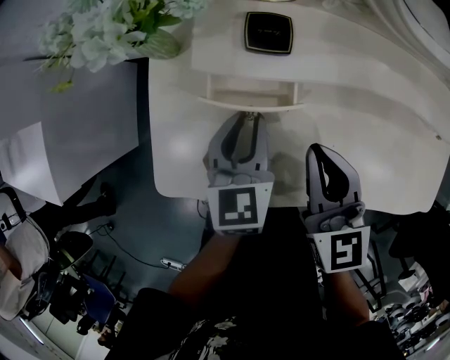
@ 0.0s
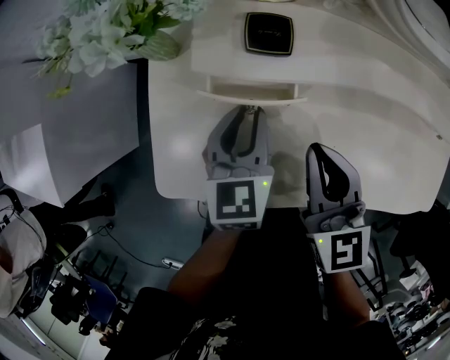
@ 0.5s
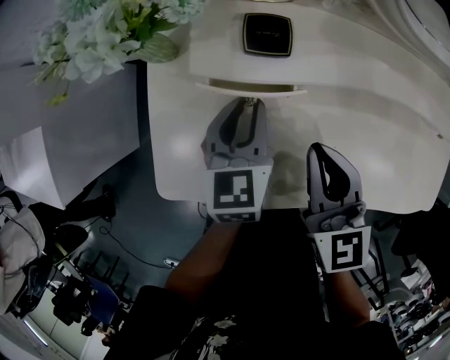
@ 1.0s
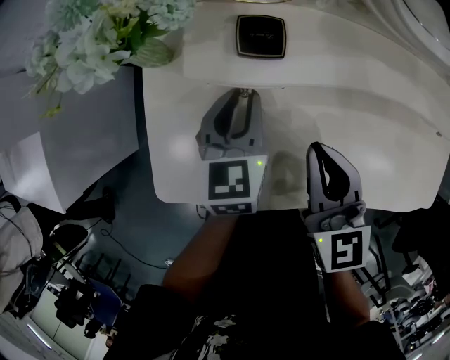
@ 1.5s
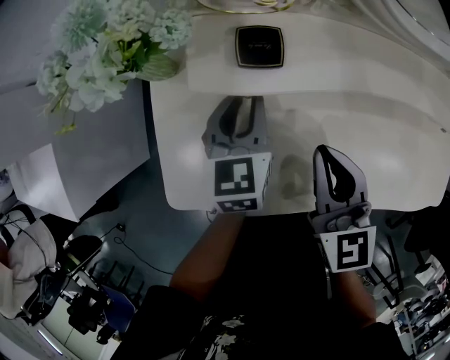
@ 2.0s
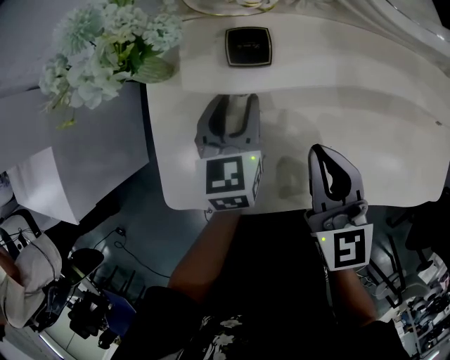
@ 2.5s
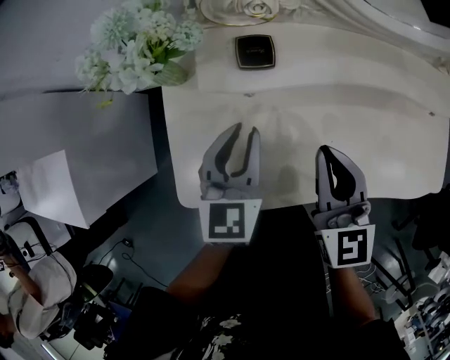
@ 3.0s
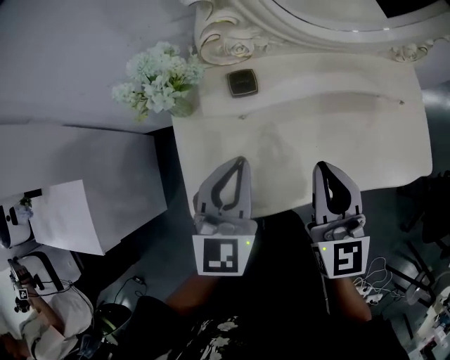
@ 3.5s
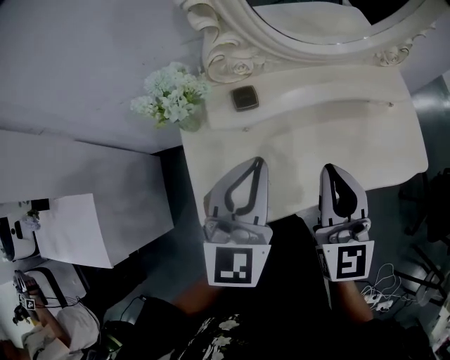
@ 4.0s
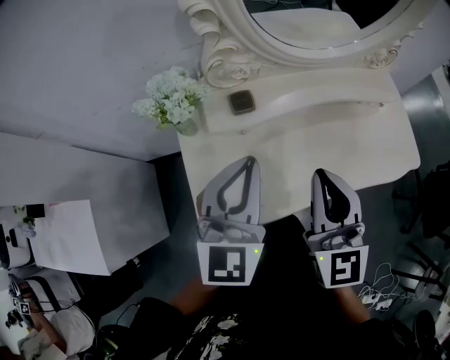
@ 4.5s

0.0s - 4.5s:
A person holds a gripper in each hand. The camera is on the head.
0.0s - 2.0s: The left gripper travels forward by roughly 5 cm.
2.0s - 4.5s: Both grippers move upward and backward, some 25 cm. The right gripper changes its angle by some 30 degrees; the left gripper changes its angle by about 40 degrees.

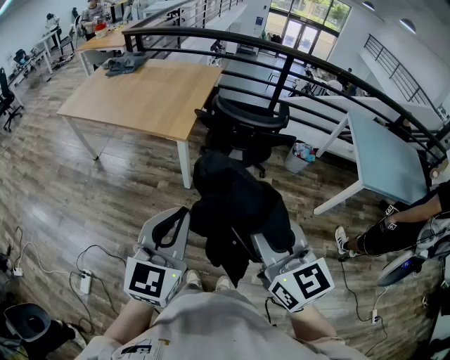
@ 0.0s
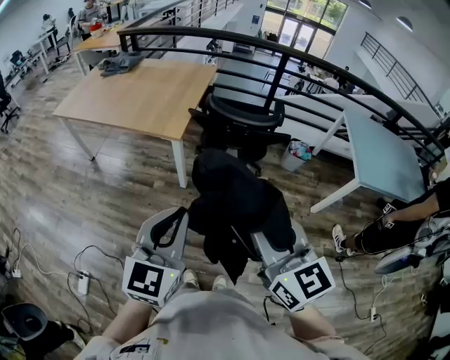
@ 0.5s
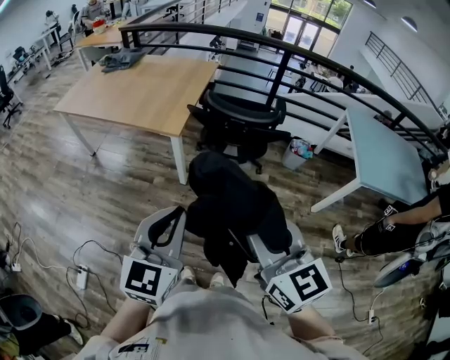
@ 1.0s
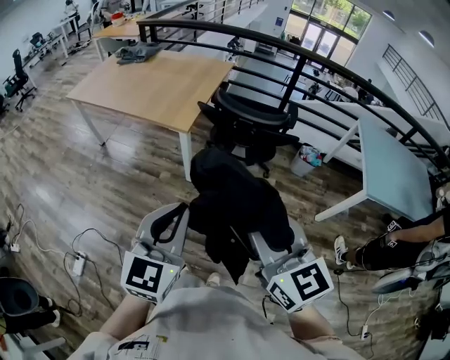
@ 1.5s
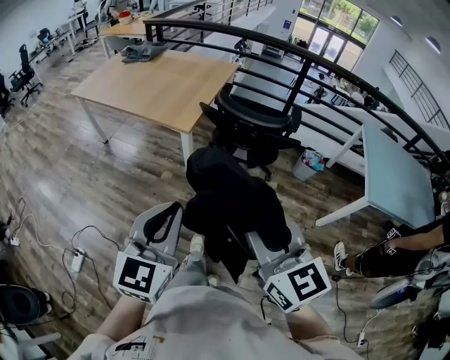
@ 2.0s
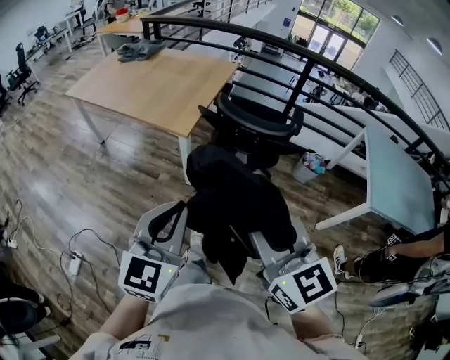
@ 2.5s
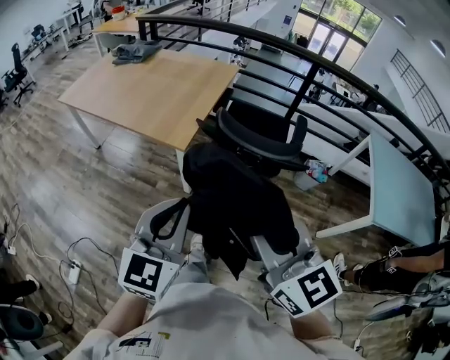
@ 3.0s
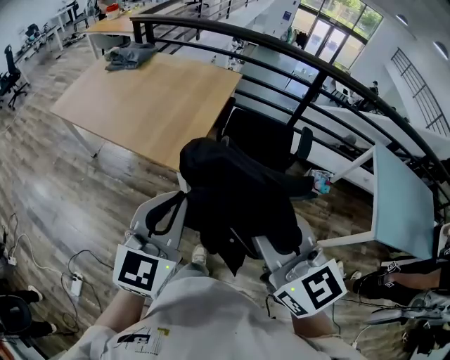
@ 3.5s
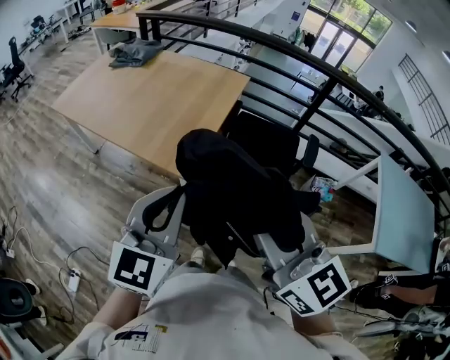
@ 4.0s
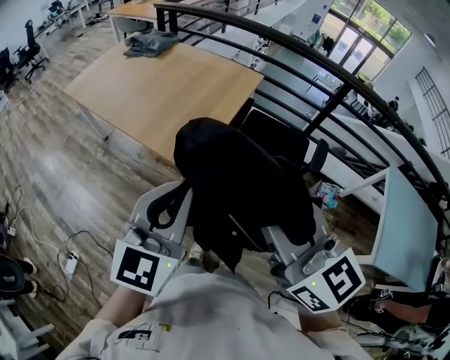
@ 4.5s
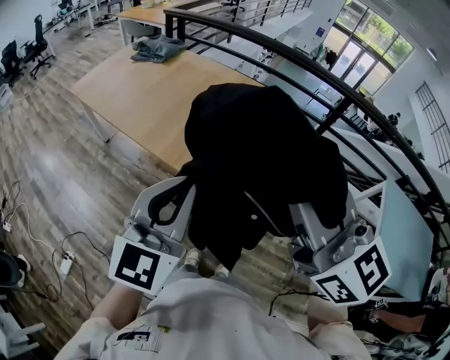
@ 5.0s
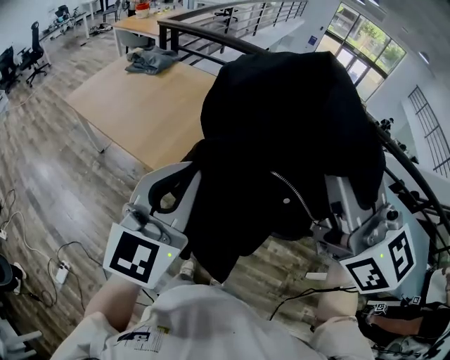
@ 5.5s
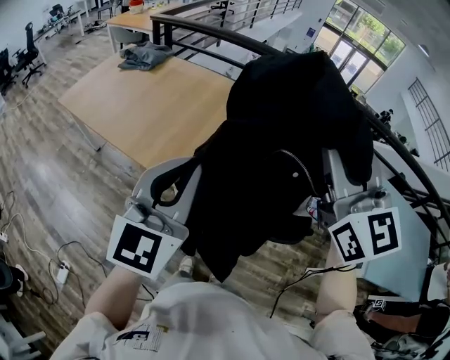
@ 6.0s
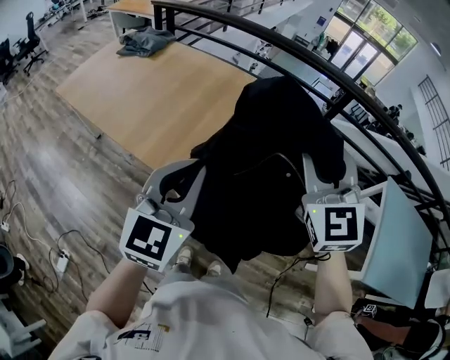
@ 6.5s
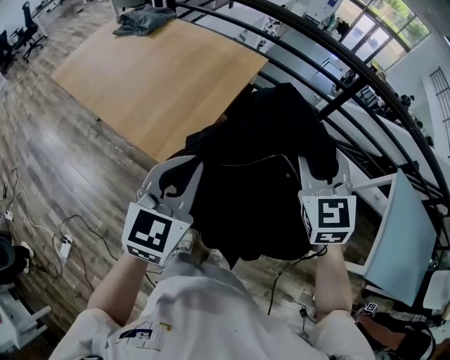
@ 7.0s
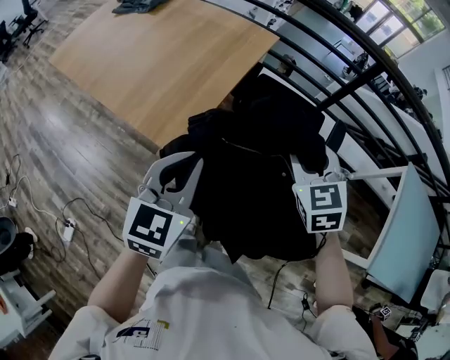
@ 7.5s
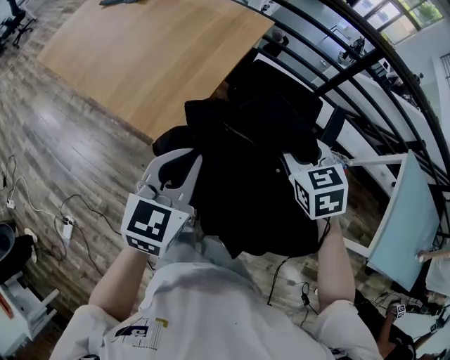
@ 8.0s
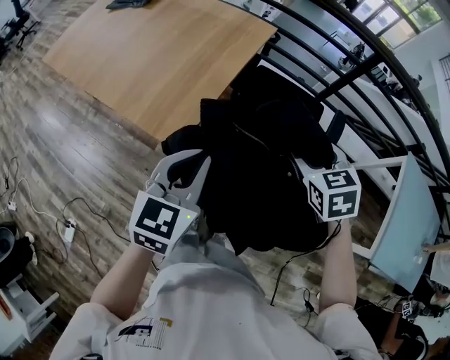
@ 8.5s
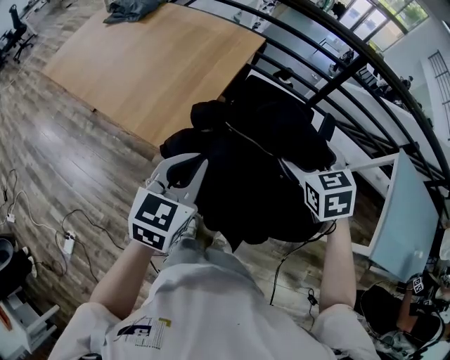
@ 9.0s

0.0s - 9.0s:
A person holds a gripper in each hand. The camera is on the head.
0.0s - 2.0s: Both grippers travel together to the right, about 5 cm.
2.0s - 4.5s: The grippers both shift forward by approximately 40 cm.
4.5s - 7.0s: The right gripper is displaced forward, to the right and downward by some 35 cm, and rotates some 40 degrees. Meanwhile the left gripper travels forward, to the right and downward by some 20 cm.
7.0s - 9.0s: The right gripper heads downward, covering about 10 cm, rotates approximately 30 degrees, and opens up; the left gripper shifts about 5 cm downward.

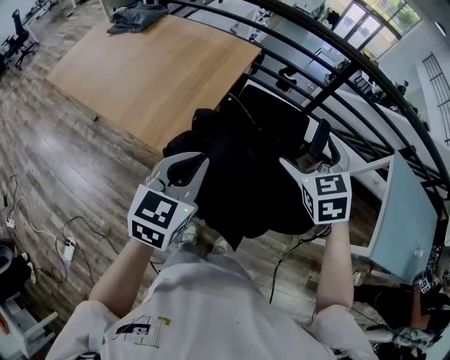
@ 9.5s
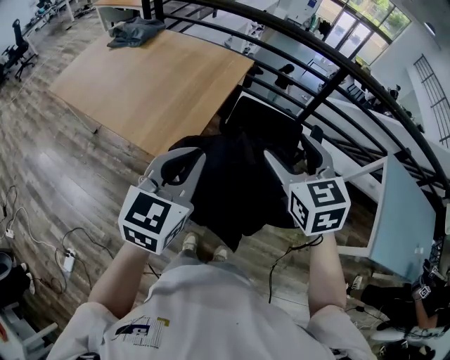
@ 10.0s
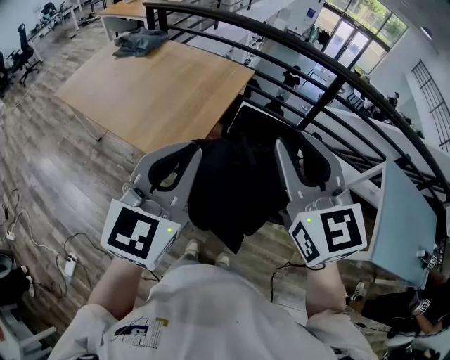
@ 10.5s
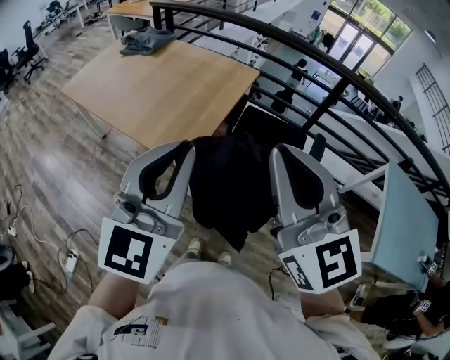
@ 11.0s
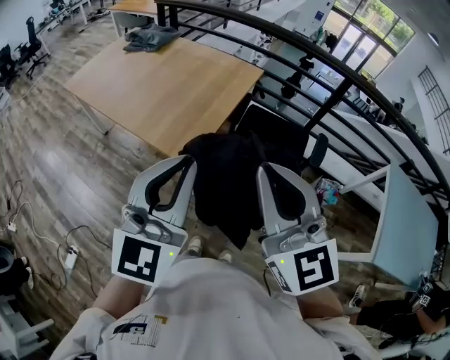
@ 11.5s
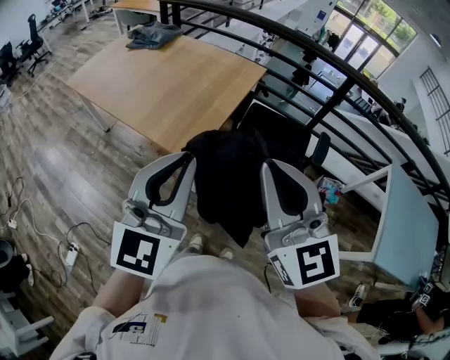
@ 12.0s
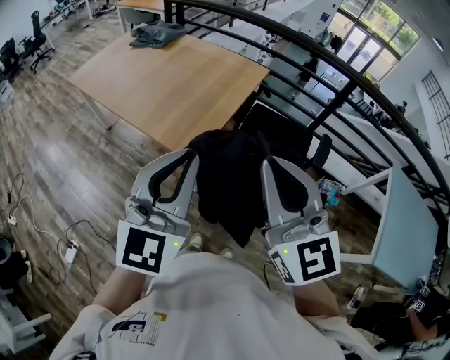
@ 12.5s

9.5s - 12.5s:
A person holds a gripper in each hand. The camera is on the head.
9.5s - 11.0s: The right gripper heads upward, backward and to the left, covering about 30 cm, tilts its fingers some 40 degrees upward, and closes. The left gripper heads upward and backward, covering some 20 cm, and changes its angle by some 30 degrees.
11.0s - 12.5s: The right gripper ends up some 5 cm from where it was.

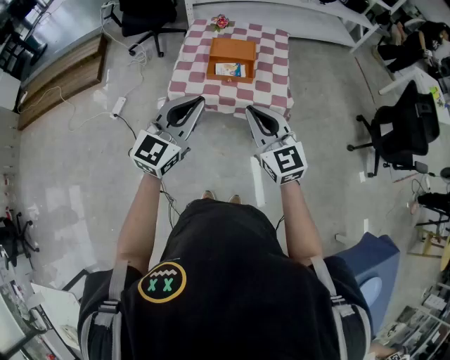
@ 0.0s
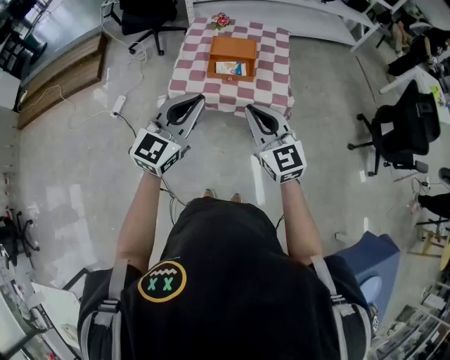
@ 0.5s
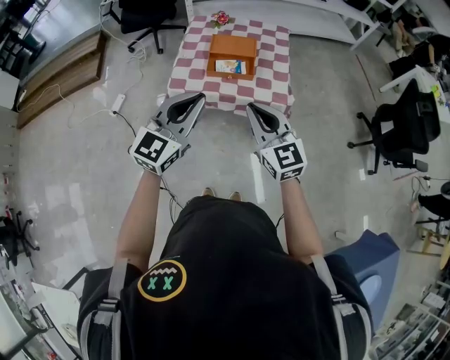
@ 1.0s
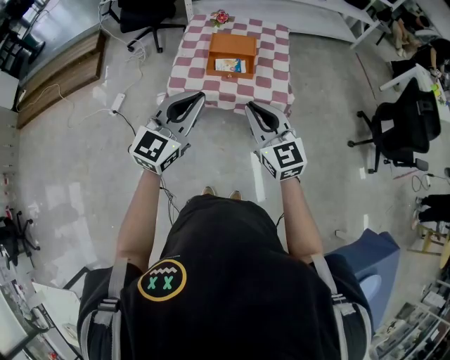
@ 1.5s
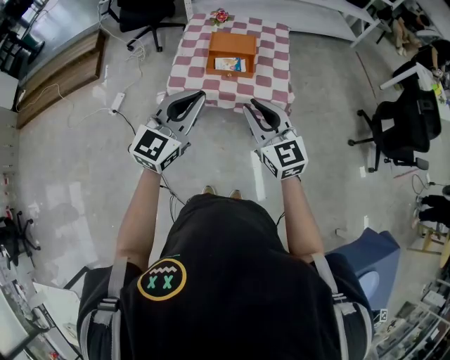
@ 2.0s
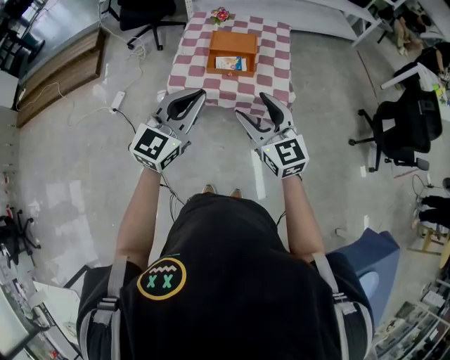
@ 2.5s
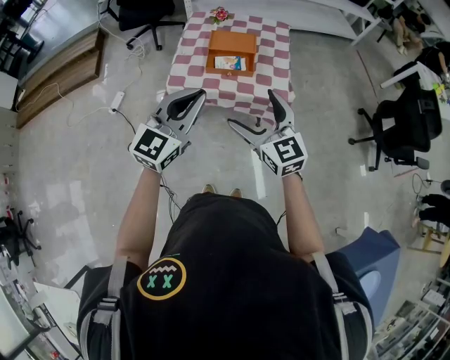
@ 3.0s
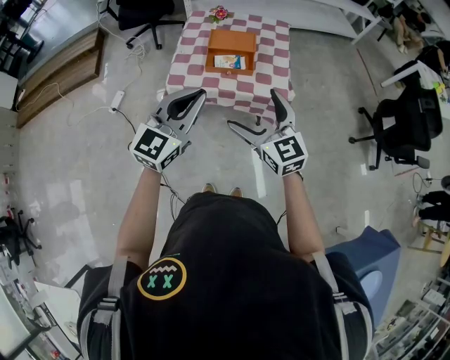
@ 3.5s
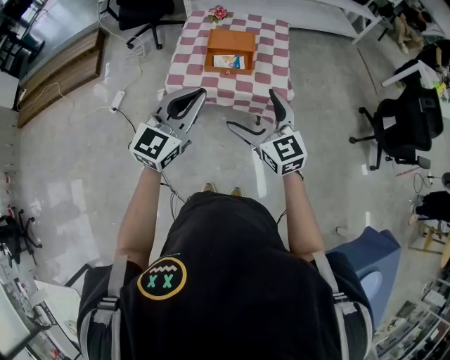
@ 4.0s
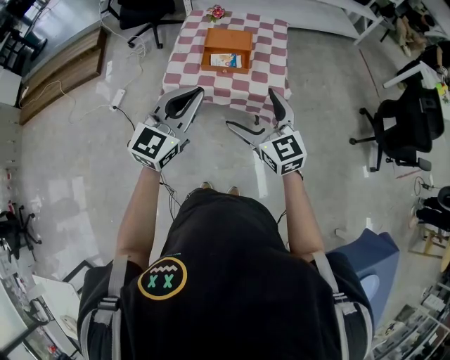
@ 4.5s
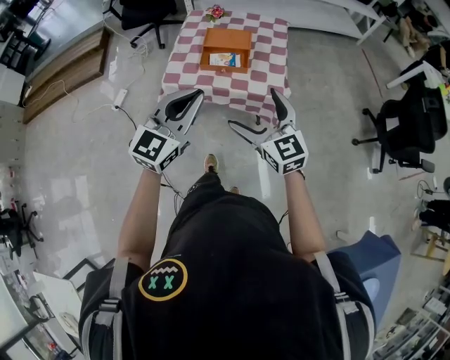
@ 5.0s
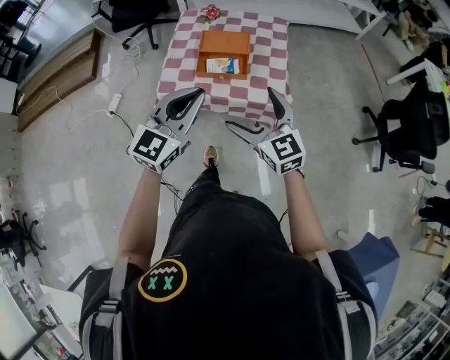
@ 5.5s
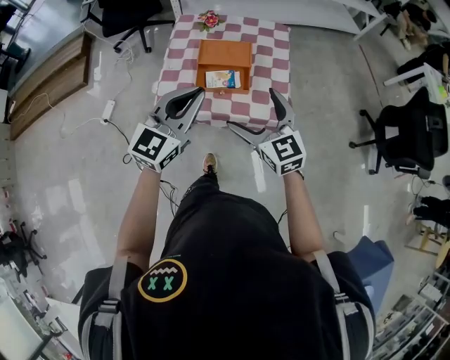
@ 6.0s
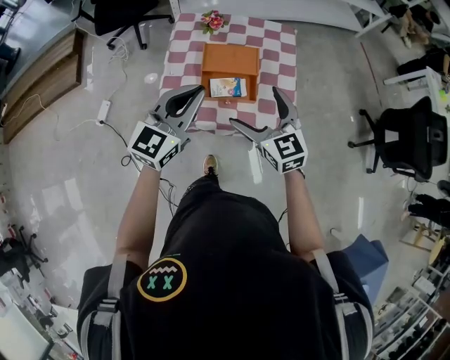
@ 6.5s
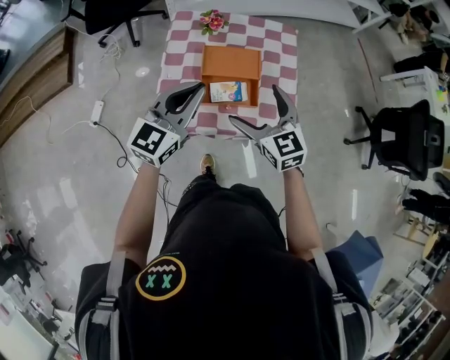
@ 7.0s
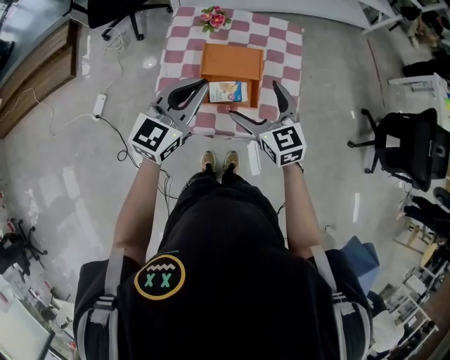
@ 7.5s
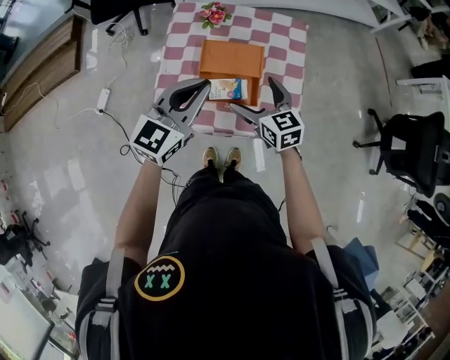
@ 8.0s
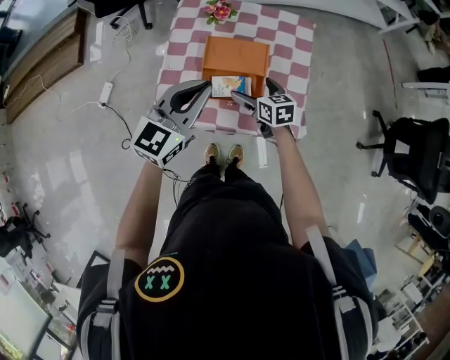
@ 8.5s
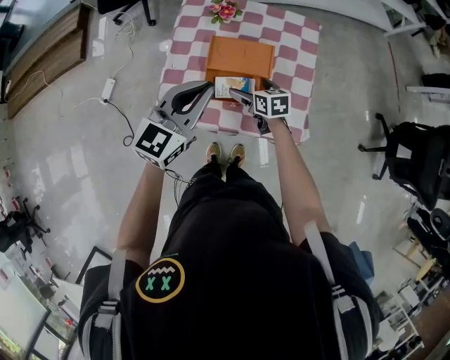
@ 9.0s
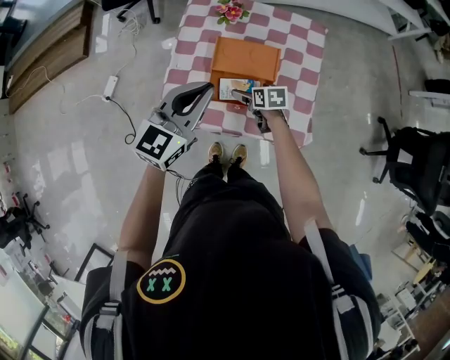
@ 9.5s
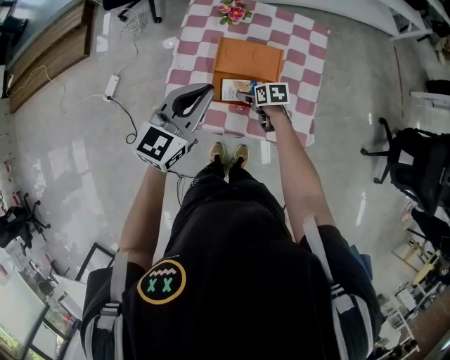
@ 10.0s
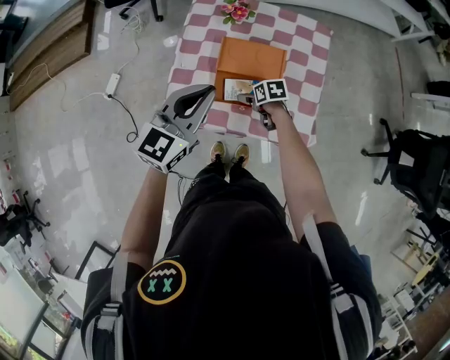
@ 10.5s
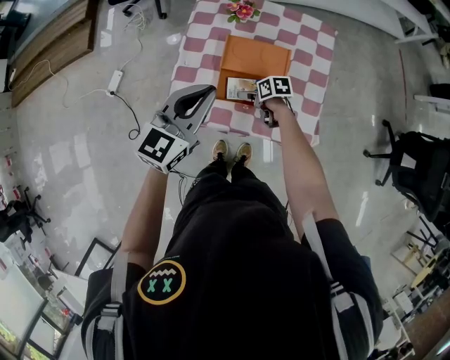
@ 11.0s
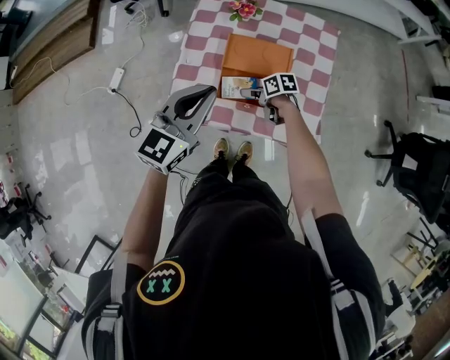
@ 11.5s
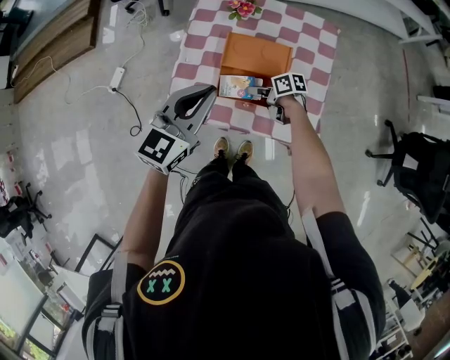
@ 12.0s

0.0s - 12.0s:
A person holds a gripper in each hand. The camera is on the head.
0.0s - 2.0s: The grippers stay close to where they were, moving slightly.
2.0s - 4.0s: The right gripper opens up.
4.0s - 6.0s: Both grippers travel together forward, approximately 20 cm.
6.0s - 8.0s: The left gripper shifts roughly 15 cm forward. The right gripper heads forward and downward, covering about 25 cm.
8.0s - 10.0s: The right gripper is displaced downward by about 20 cm, and points its fingers some 30 degrees further downward.
10.0s - 12.0s: The right gripper swivels about 30 degrees, and closes its fingers.
